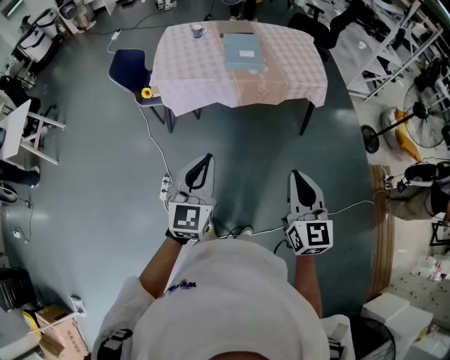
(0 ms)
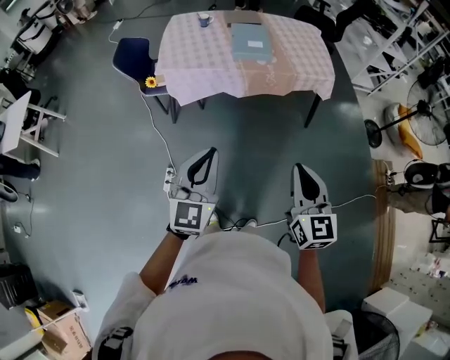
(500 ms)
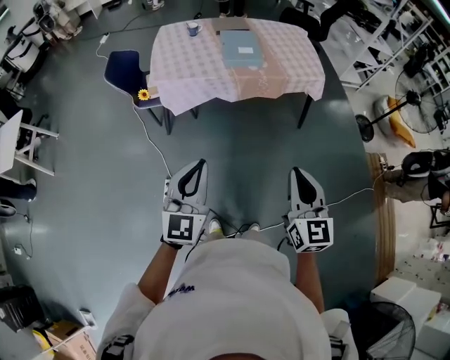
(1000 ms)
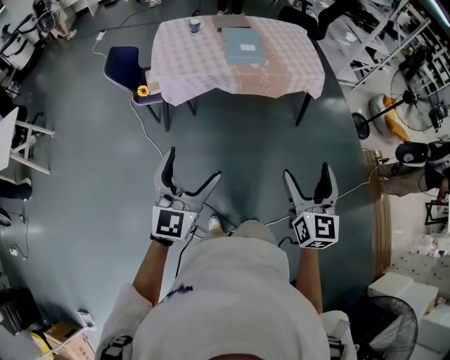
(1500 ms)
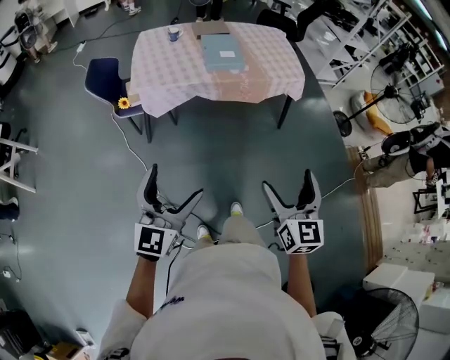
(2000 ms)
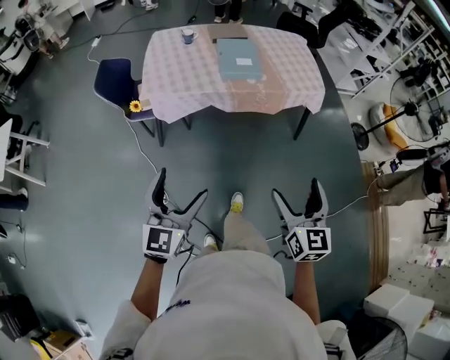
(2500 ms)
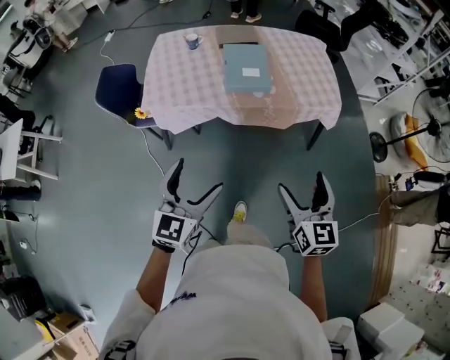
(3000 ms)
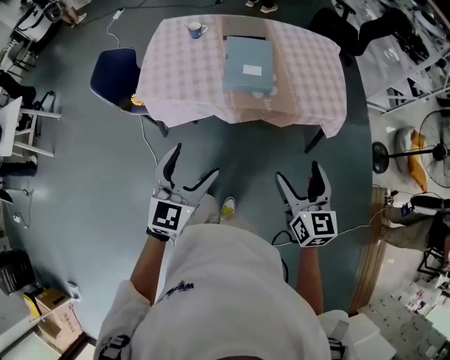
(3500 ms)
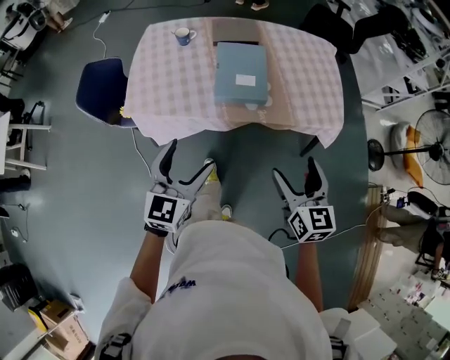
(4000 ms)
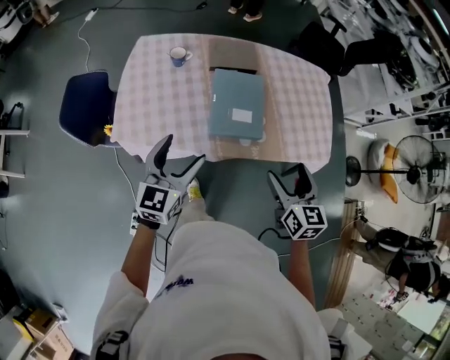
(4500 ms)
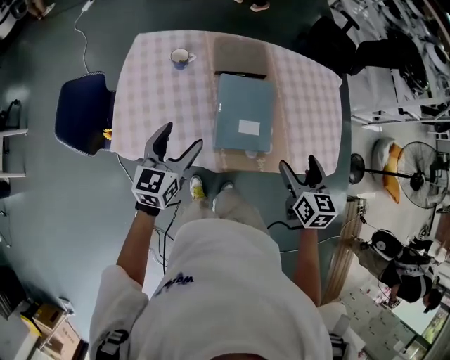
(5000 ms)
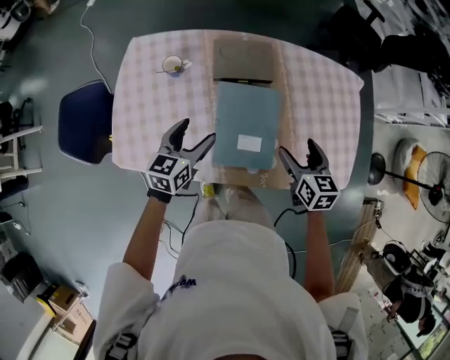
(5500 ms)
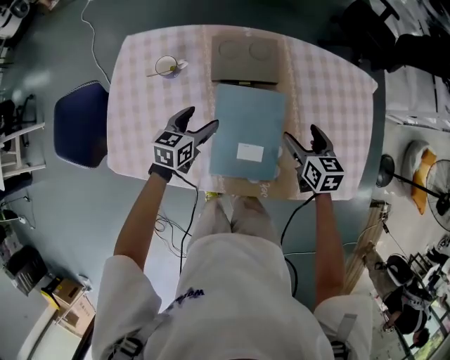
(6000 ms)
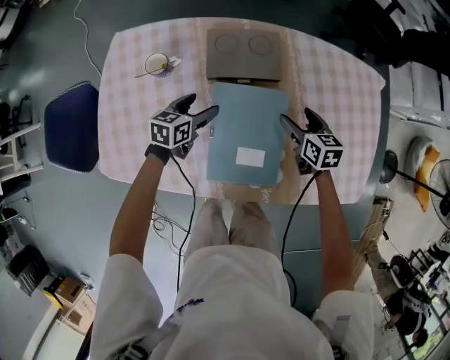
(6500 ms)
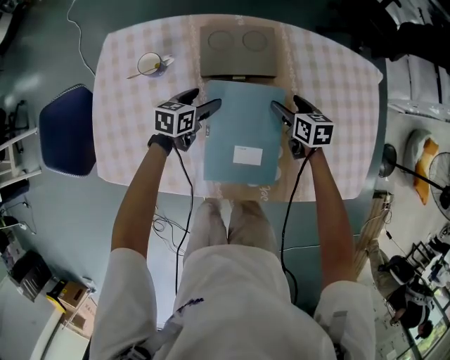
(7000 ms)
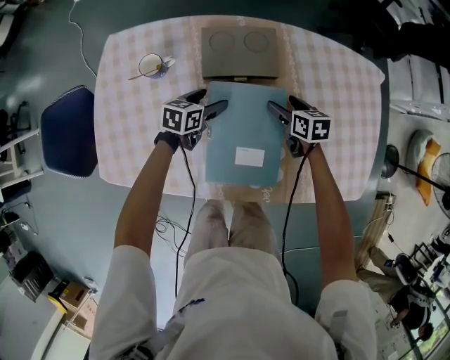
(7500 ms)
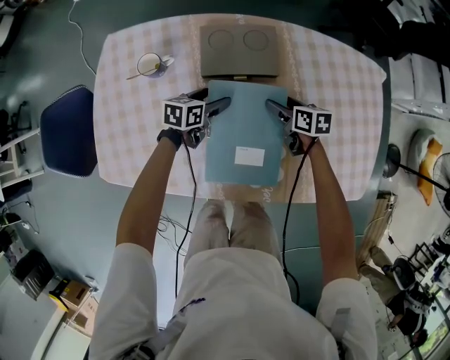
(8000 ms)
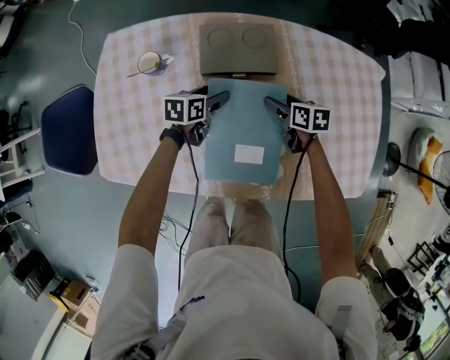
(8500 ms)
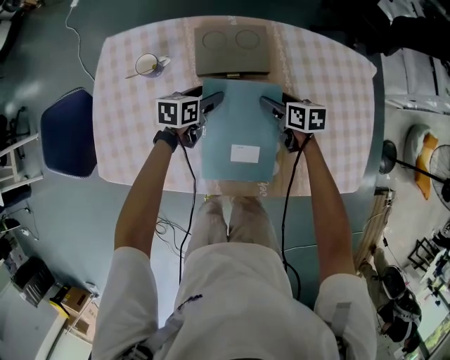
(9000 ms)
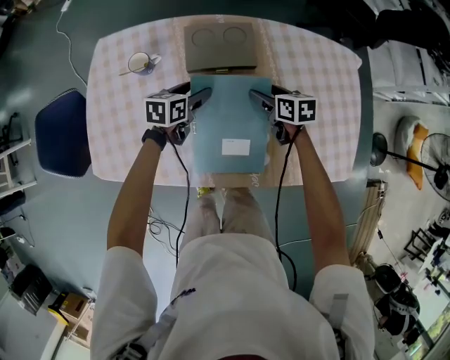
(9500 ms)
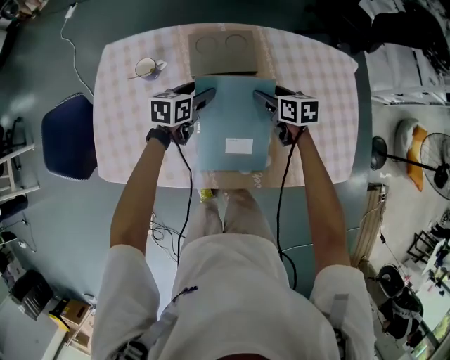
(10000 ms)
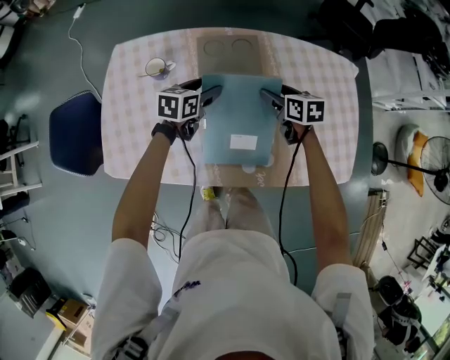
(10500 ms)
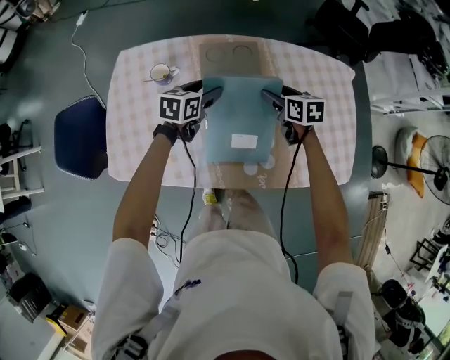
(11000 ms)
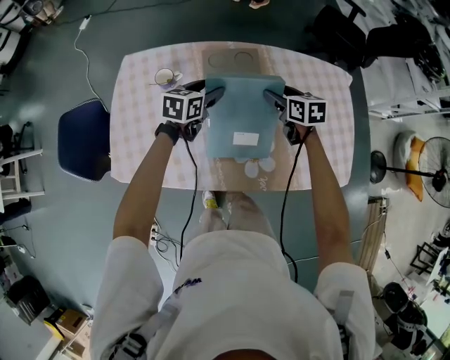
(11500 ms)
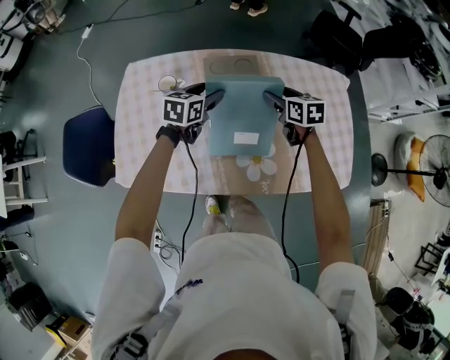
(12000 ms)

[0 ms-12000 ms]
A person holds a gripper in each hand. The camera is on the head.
0 ms to 2000 ms: The right gripper heads to the left, covering approximately 10 cm, and opens its fingers, while the left gripper travels to the left by approximately 15 cm, and opens up.
2000 ms to 4000 ms: The pair of grippers is taken forward, about 50 cm. The right gripper turns by about 20 degrees.
4000 ms to 6000 ms: The two grippers travel together, forward, some 50 cm. The right gripper changes its angle by roughly 20 degrees. Meanwhile the left gripper goes about 25 cm downward, and changes its angle by some 30 degrees.
6000 ms to 8000 ms: Both grippers travel together downward and forward, some 15 cm. The right gripper turns by approximately 20 degrees.
8000 ms to 10000 ms: The two grippers go approximately 10 cm upward.
10000 ms to 12000 ms: Both grippers travel together upward, some 10 cm.

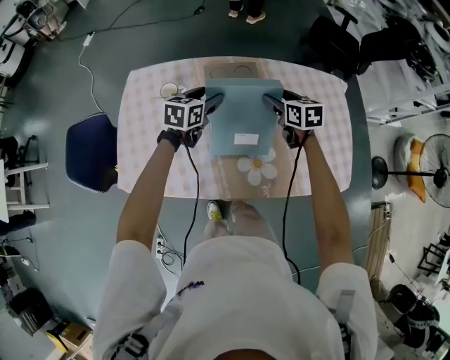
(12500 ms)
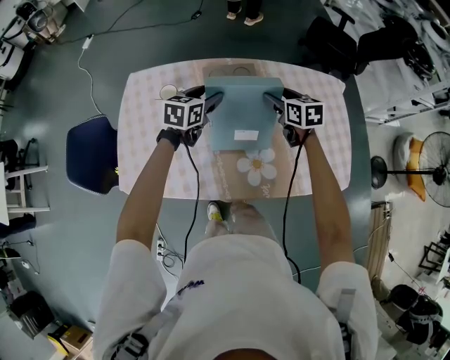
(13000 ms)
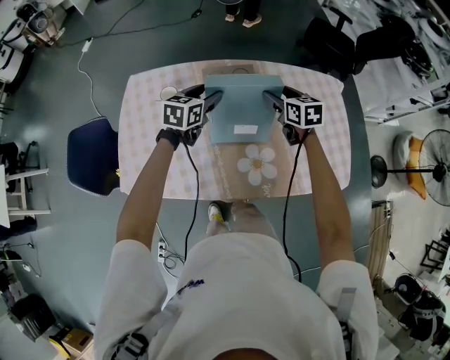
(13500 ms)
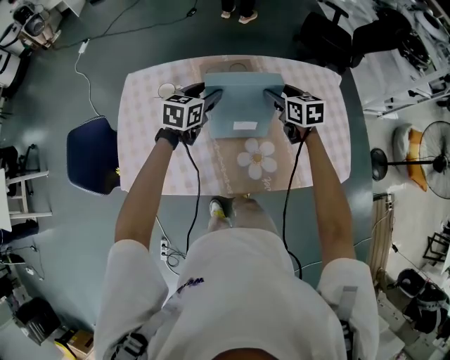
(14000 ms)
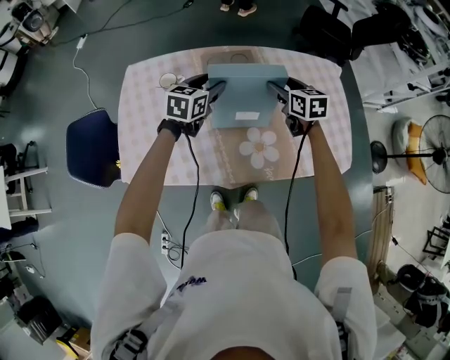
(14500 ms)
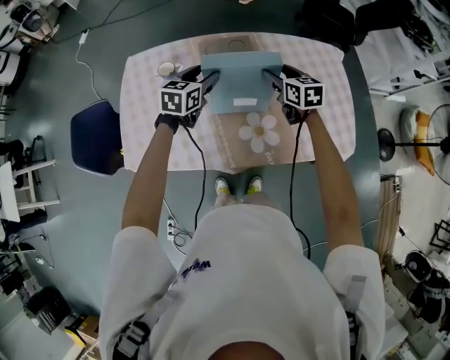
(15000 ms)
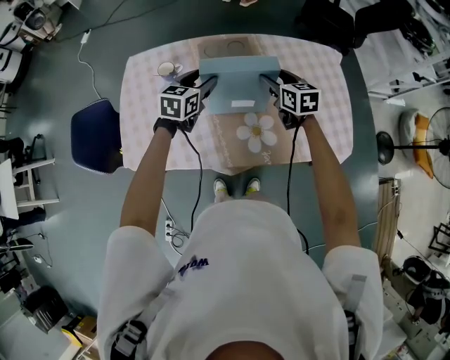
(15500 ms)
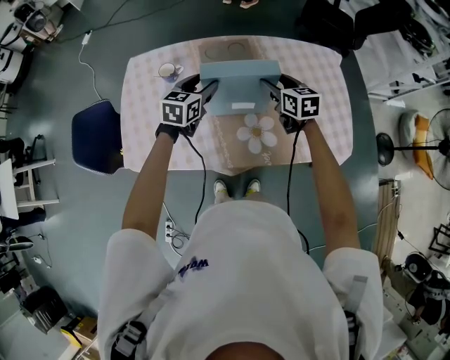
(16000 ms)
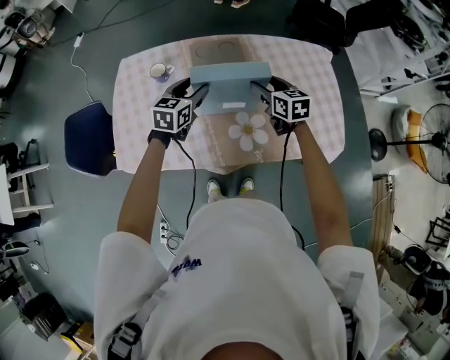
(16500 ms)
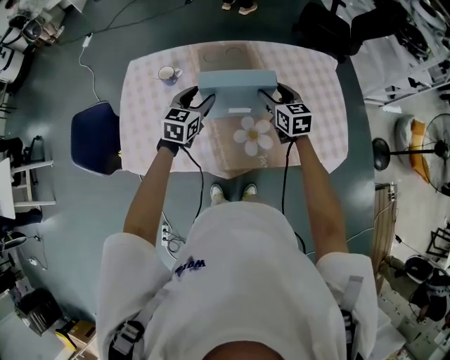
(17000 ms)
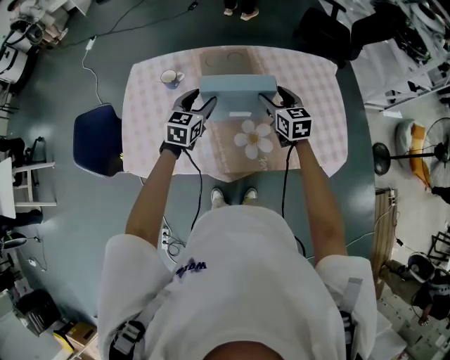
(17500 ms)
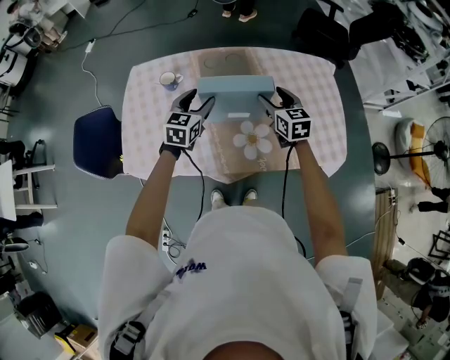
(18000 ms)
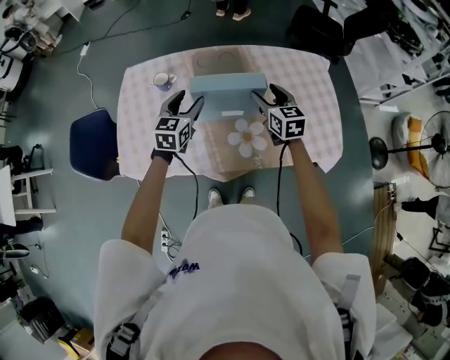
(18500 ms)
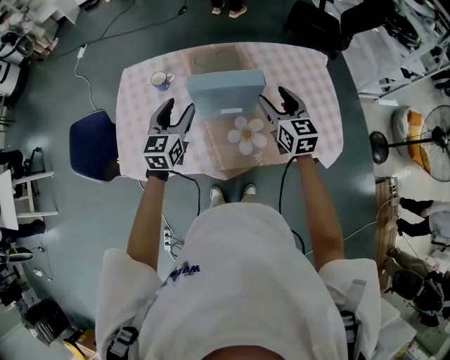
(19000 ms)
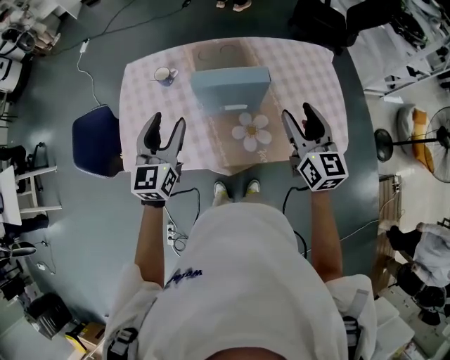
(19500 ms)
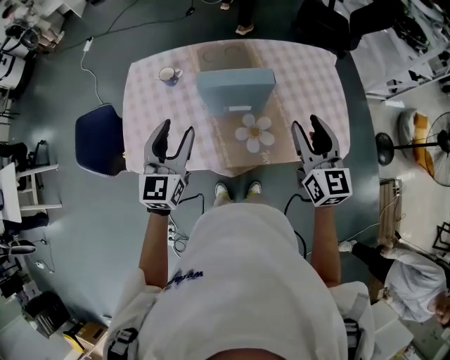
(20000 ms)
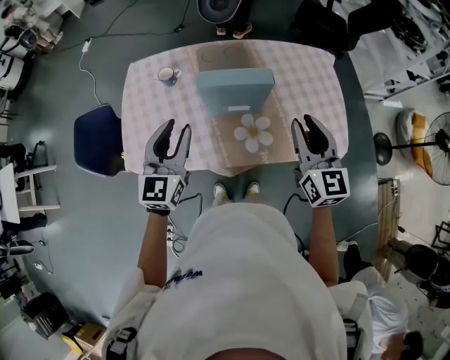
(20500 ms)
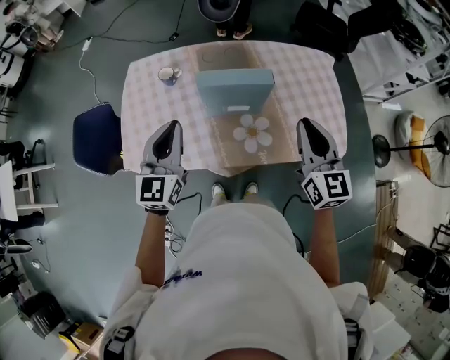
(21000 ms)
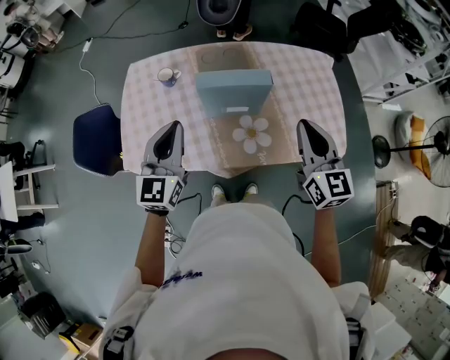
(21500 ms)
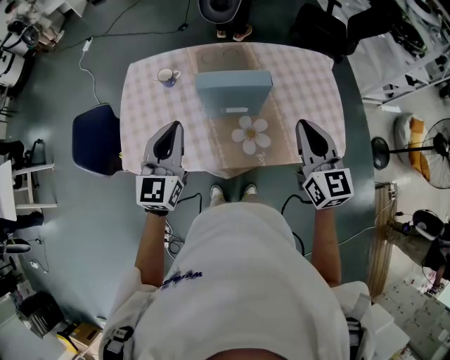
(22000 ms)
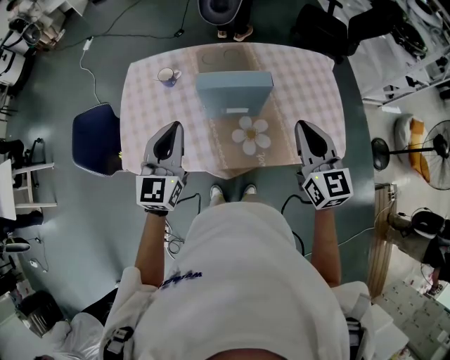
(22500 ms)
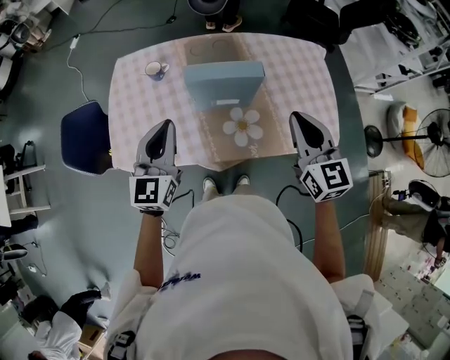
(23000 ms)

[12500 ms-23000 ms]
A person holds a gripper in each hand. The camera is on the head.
12500 ms to 14500 ms: The grippers move only a little.
14500 ms to 16500 ms: Both grippers travel together backward, about 5 cm.
16500 ms to 19000 ms: The left gripper is displaced backward and upward by roughly 10 cm. Meanwhile the right gripper is displaced upward and backward by roughly 10 cm.
19000 ms to 21000 ms: The grippers both shift backward and upward by about 15 cm. The right gripper closes its fingers, while the left gripper closes its fingers.
21000 ms to 23000 ms: The grippers move only a little.

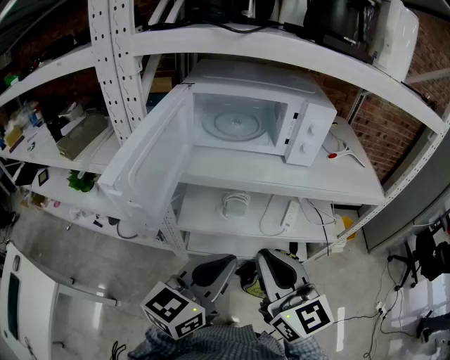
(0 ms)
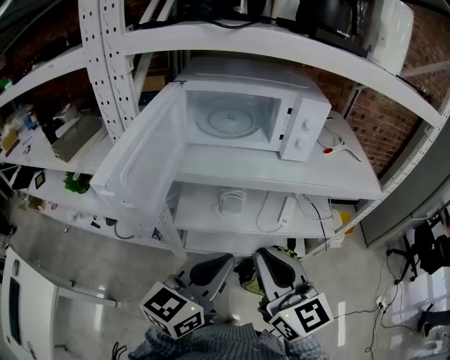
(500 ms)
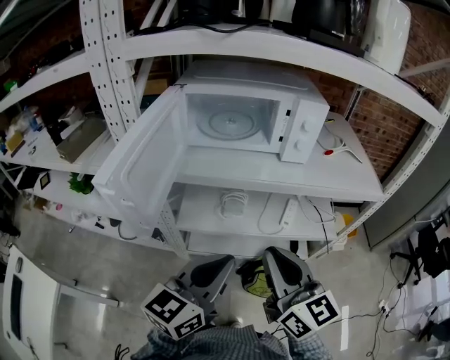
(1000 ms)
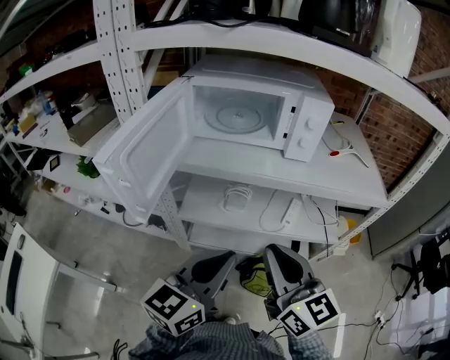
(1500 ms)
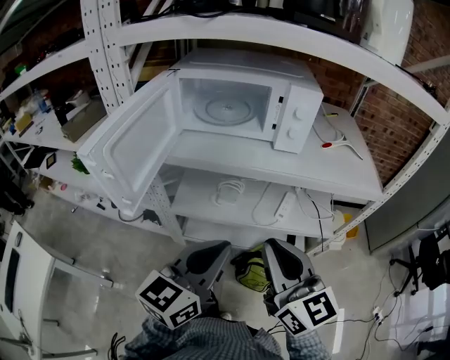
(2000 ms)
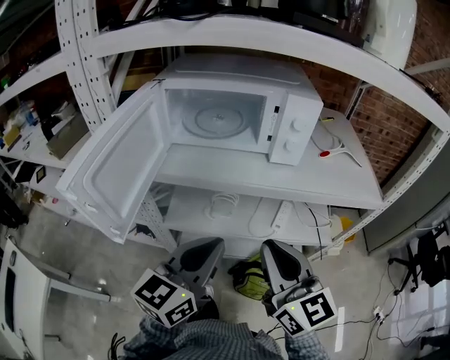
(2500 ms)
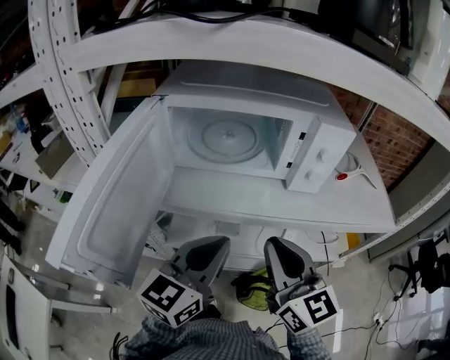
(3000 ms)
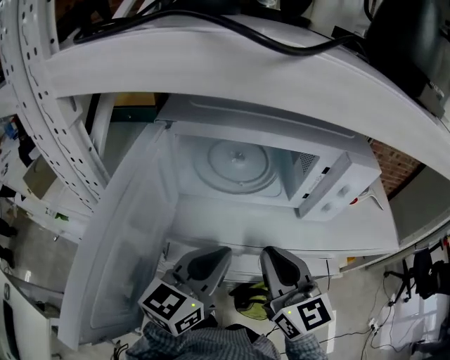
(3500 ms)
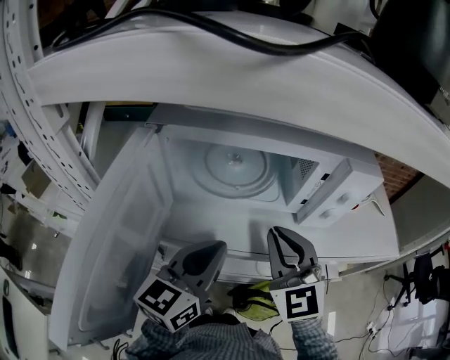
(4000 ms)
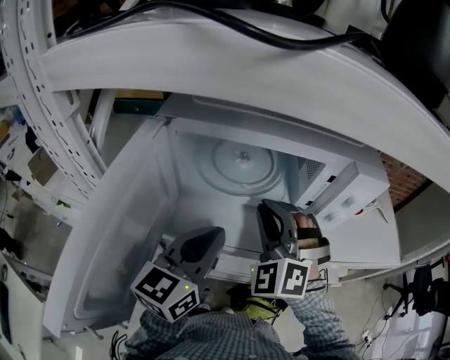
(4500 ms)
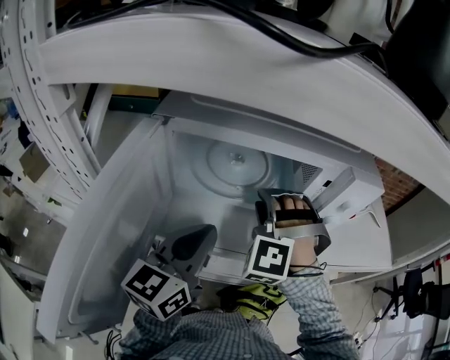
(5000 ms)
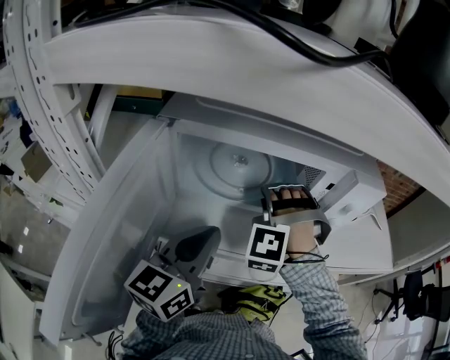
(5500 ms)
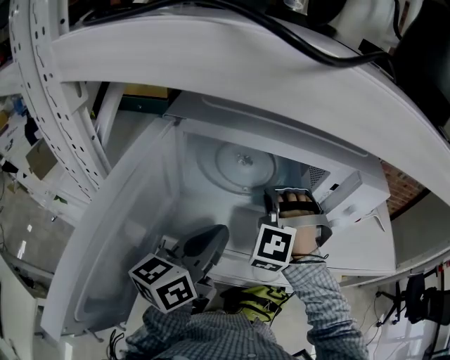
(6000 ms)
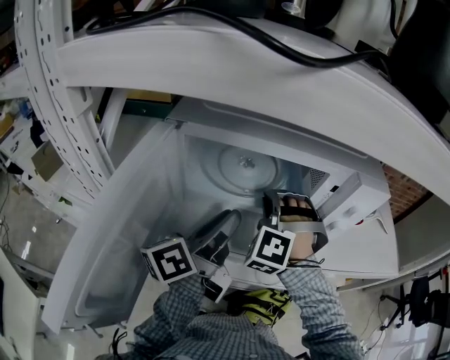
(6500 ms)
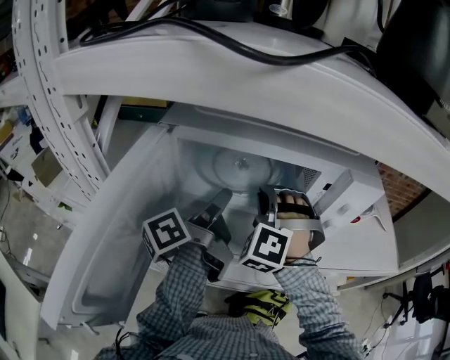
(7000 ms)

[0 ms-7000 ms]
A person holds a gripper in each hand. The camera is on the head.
0 ms to 2000 ms: The grippers both shift to the right by roughly 10 cm.
2000 ms to 3500 ms: The grippers both shift forward and to the left by about 30 cm.
3500 ms to 5000 ms: The left gripper moves roughly 5 cm, while the right gripper goes some 15 cm forward, rolls counterclockwise, seen from behind, by approximately 90 degrees, and opens up.
5000 ms to 7000 ms: The left gripper is displaced forward by some 10 cm, rolls counterclockwise, seen from behind, by some 60 degrees, and opens.
